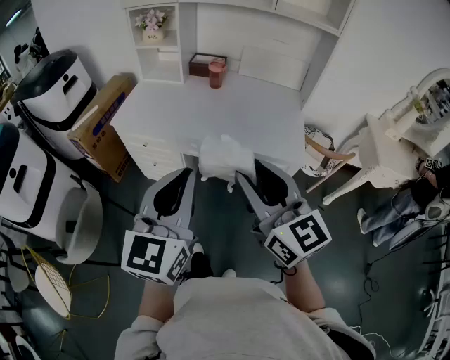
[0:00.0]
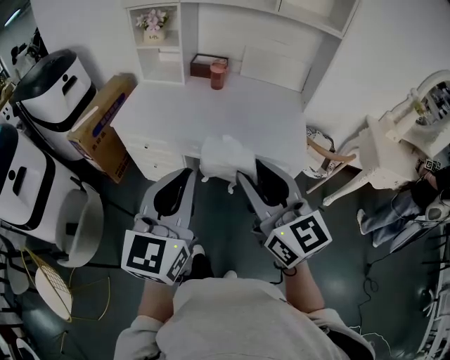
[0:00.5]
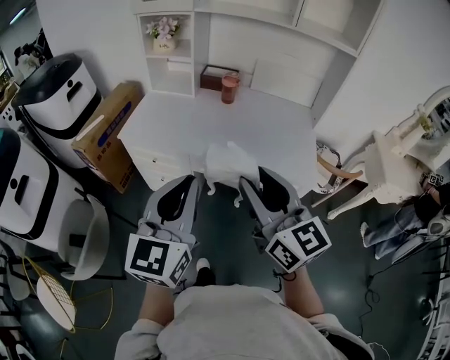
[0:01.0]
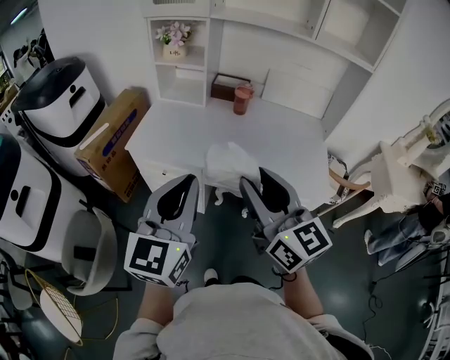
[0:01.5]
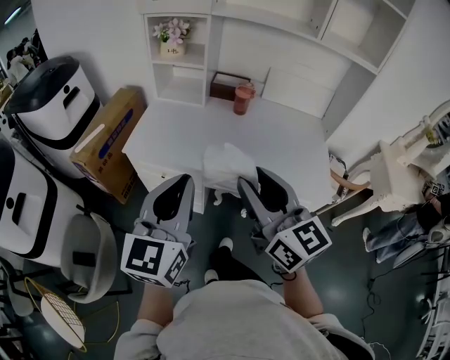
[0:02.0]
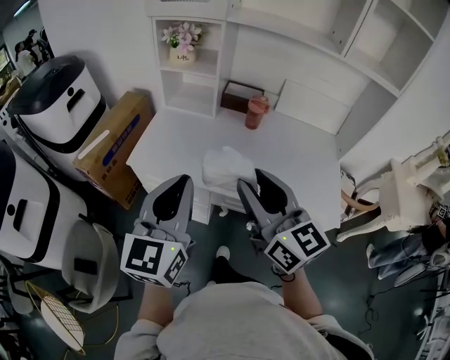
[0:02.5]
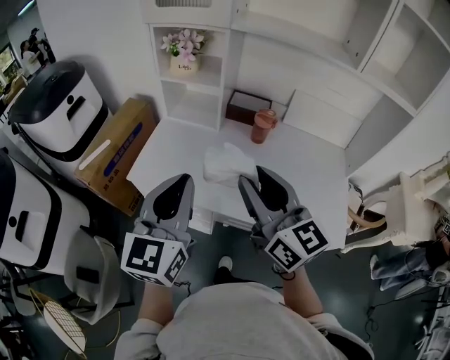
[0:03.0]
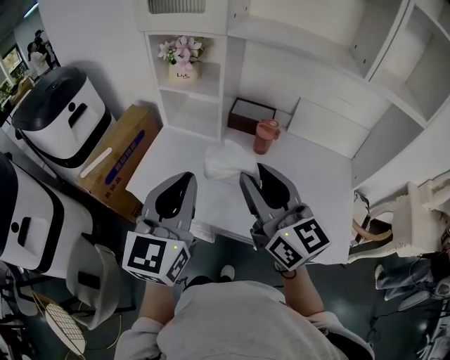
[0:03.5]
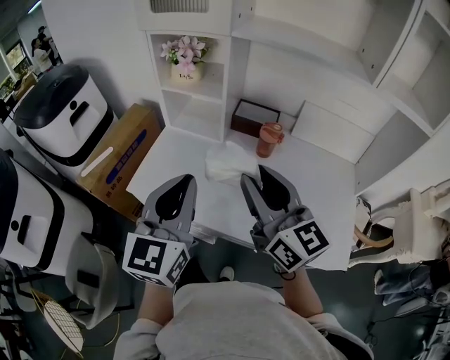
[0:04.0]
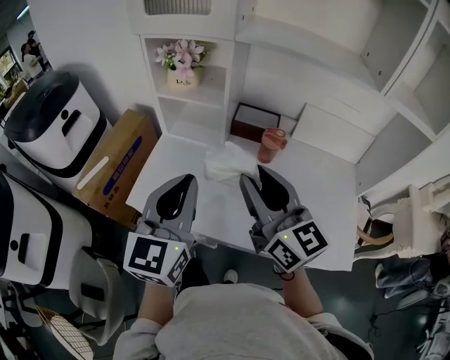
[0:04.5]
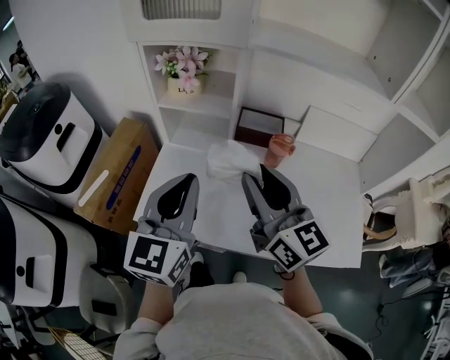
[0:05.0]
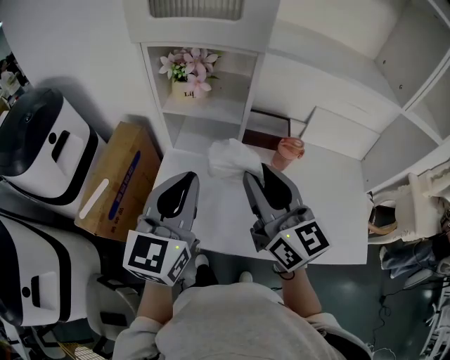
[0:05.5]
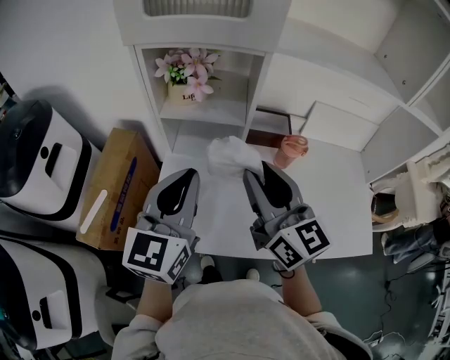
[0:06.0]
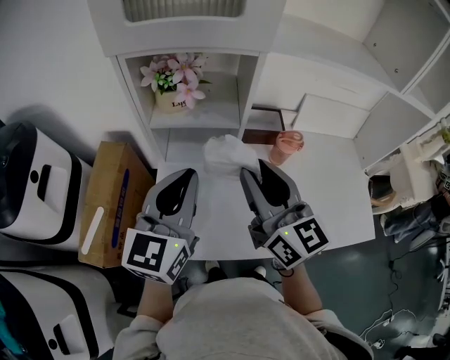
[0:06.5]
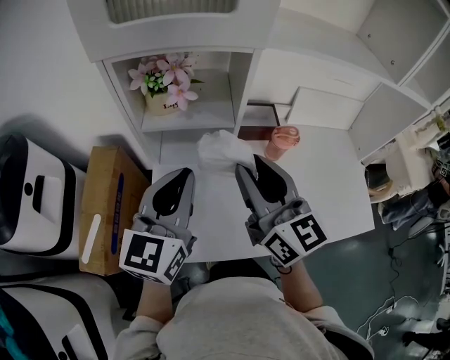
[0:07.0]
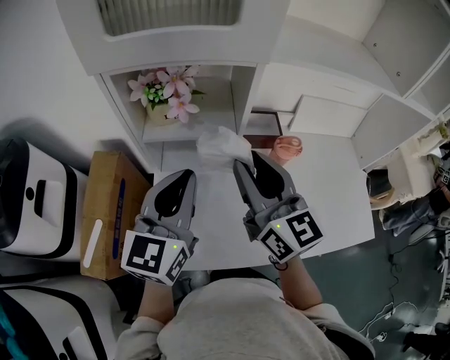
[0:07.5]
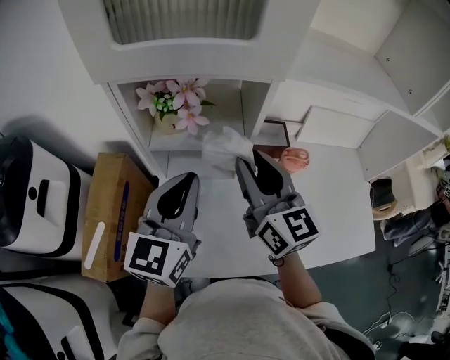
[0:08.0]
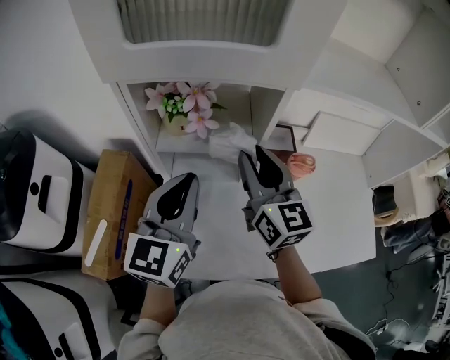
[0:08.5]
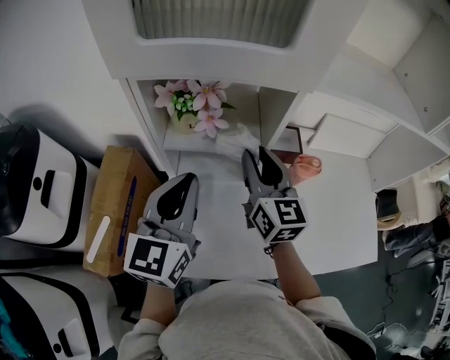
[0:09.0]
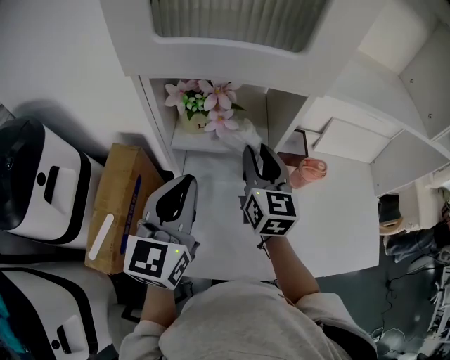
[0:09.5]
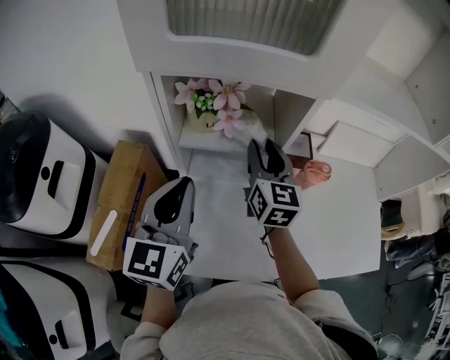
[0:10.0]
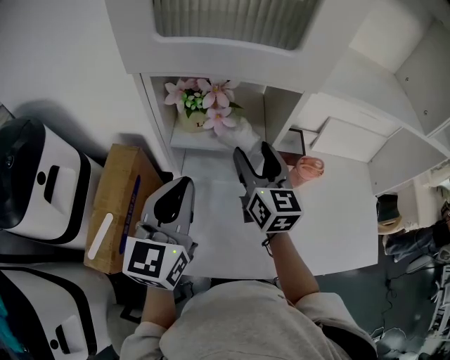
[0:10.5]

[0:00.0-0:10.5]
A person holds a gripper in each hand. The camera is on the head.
0:00.0 to 0:02.0: Both grippers travel together forward and to the left, approximately 20 cm.
0:02.0 to 0:04.0: The two grippers go roughly 25 cm forward.
0:04.0 to 0:06.5: The grippers both shift forward and to the left by approximately 25 cm. The left gripper changes its angle by approximately 20 degrees; the right gripper rotates roughly 20 degrees.
0:06.5 to 0:08.5: The left gripper heads forward, covering roughly 10 cm. The right gripper heads forward, covering approximately 15 cm.
0:08.5 to 0:10.5: The right gripper changes place by approximately 5 cm, and opens.

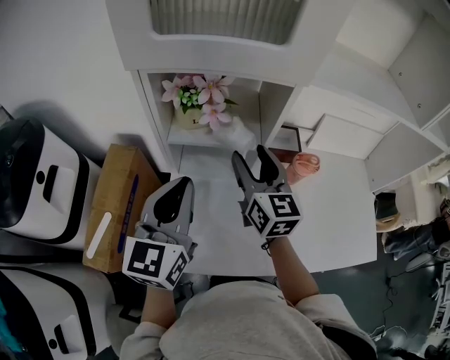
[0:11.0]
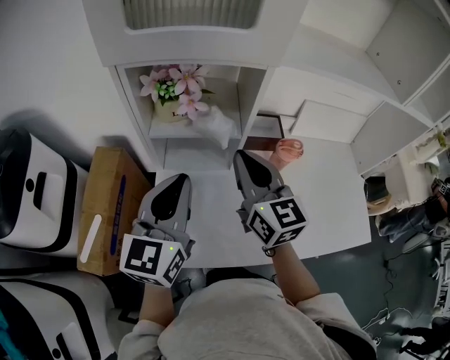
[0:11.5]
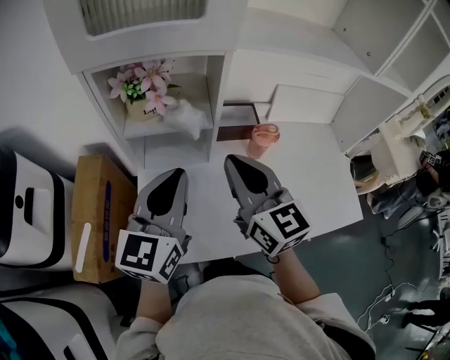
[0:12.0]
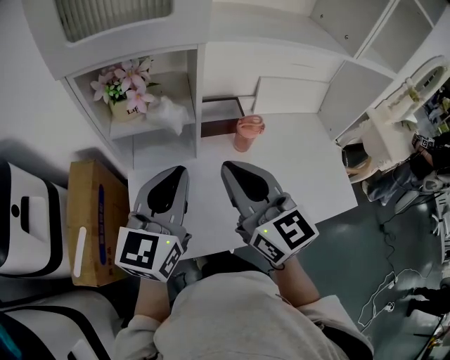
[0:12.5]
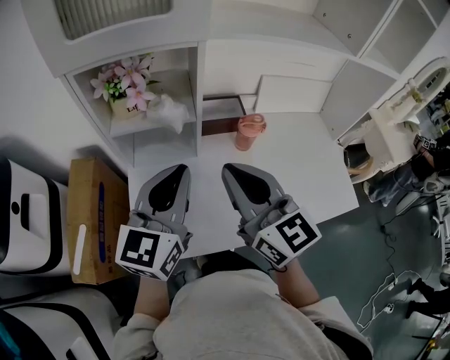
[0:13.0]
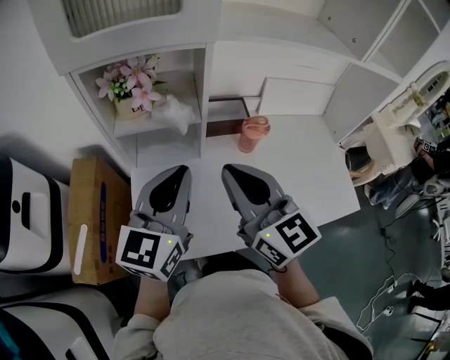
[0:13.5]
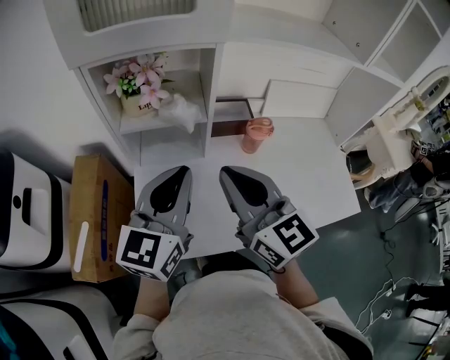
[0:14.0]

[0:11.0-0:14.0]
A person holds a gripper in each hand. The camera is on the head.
0:11.0 to 0:12.5: The right gripper shifts about 20 cm backward and to the right, and closes its fingers, while the left gripper travels to the right by some 10 cm.
0:12.5 to 0:14.0: The grippers move only a little.

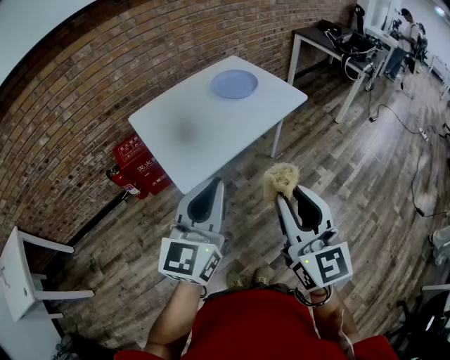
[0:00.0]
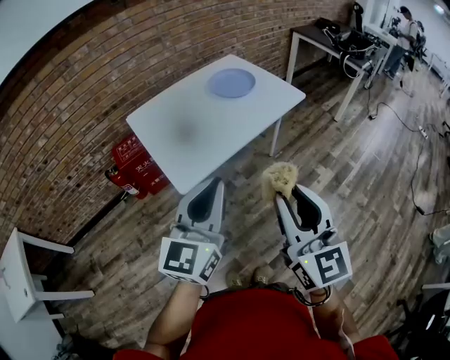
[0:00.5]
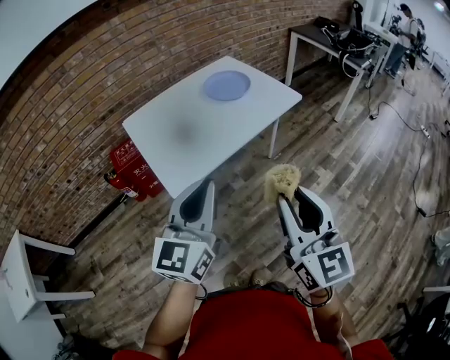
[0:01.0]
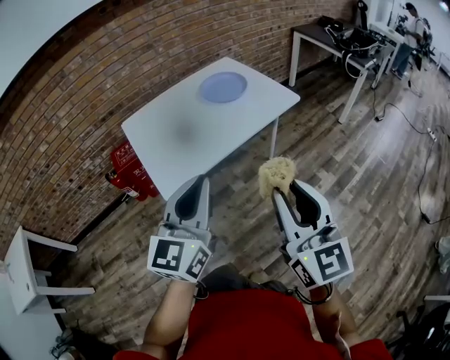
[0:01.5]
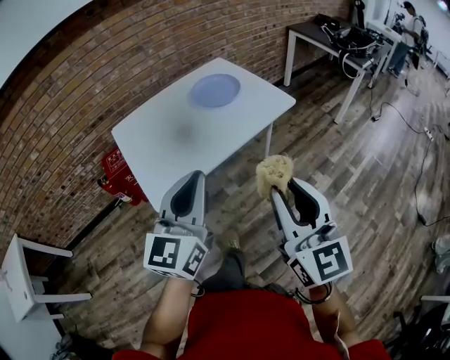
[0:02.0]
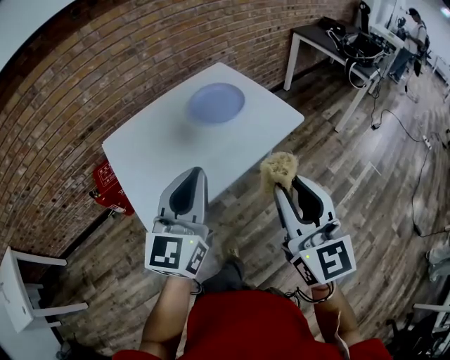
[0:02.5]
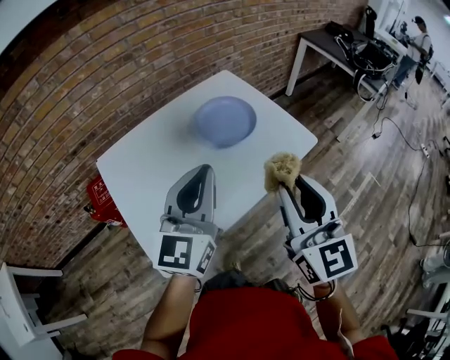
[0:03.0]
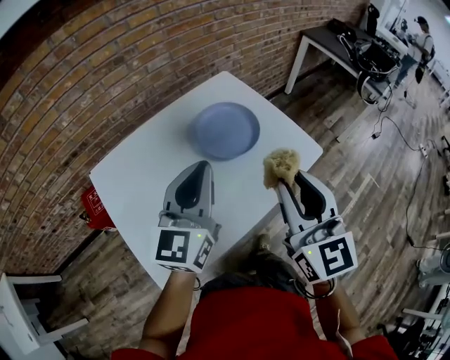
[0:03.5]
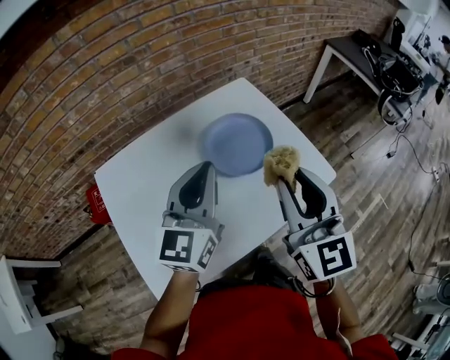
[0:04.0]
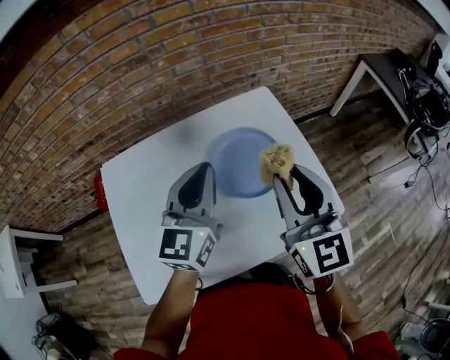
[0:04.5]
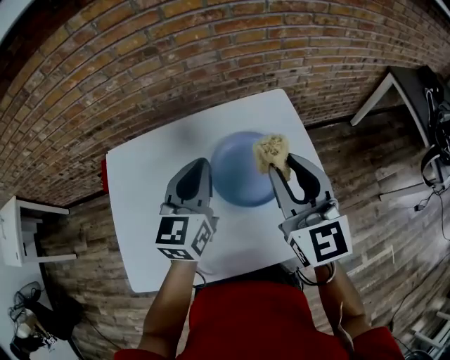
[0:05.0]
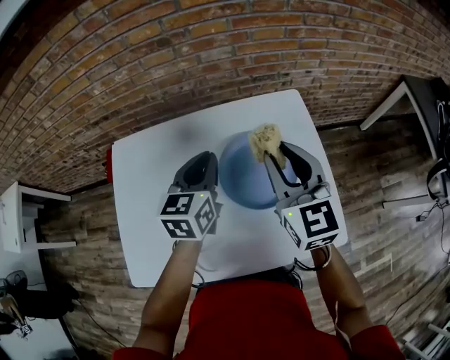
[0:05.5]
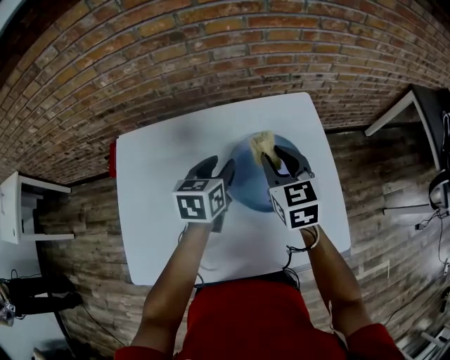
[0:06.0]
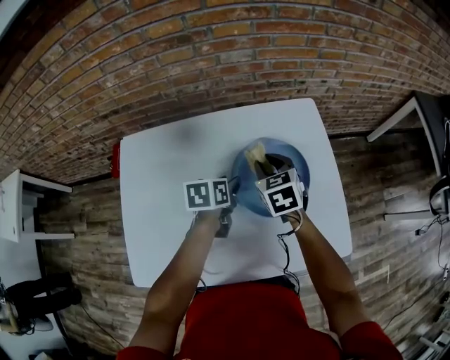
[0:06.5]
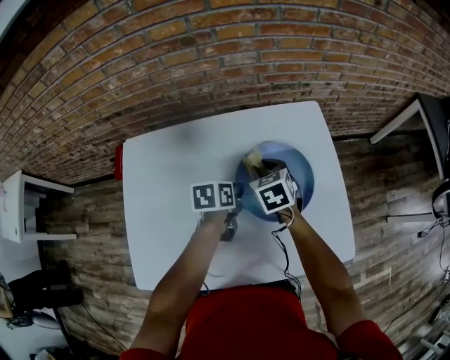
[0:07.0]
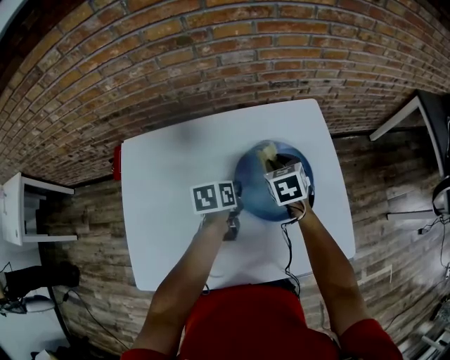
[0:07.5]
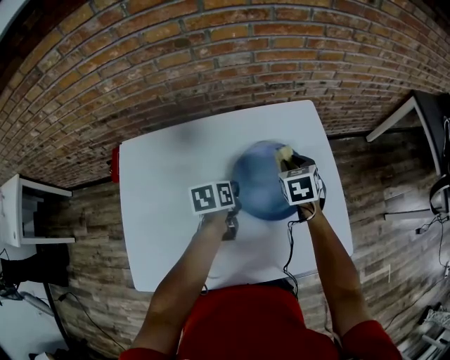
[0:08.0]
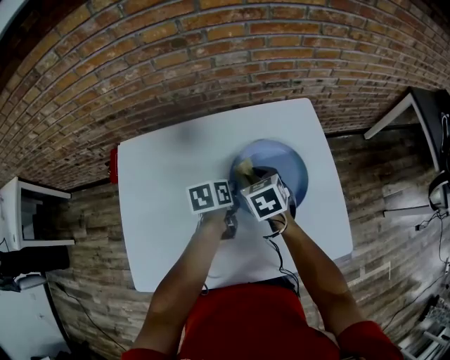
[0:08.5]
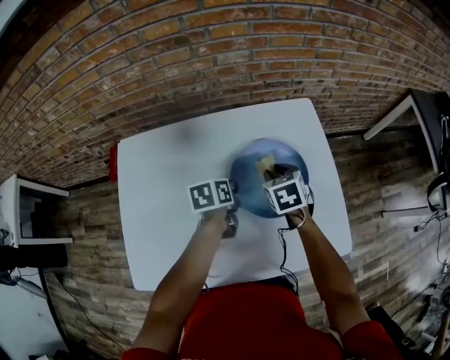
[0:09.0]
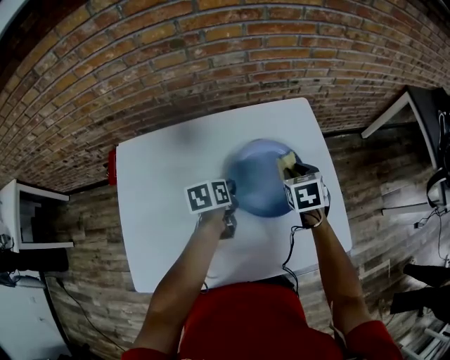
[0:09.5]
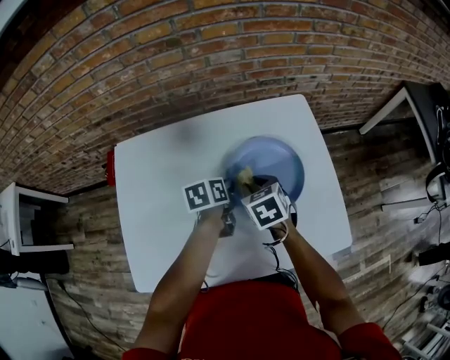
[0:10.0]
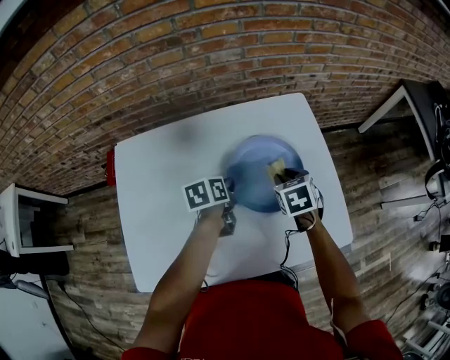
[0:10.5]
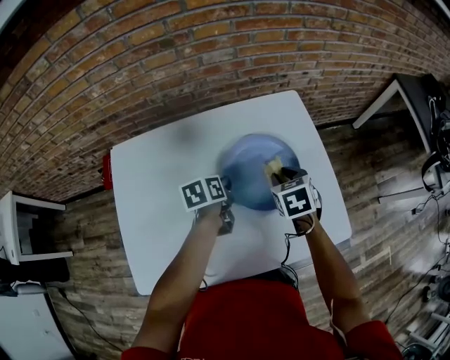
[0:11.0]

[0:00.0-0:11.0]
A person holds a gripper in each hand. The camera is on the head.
0:00.0 to 0:02.0: The right gripper shifts some 15 cm to the right and forward. Meanwhile the left gripper goes some 10 cm forward and to the right.
0:02.0 to 0:03.5: The two grippers go some 35 cm forward.
0:03.5 to 0:05.5: The left gripper shifts by approximately 25 cm, and changes its angle by about 40 degrees; the right gripper ends up approximately 30 cm from where it was, and rotates some 30 degrees.
0:05.5 to 0:07.5: Both grippers move downward, some 20 cm. The left gripper rotates some 40 degrees, and opens, then closes once more, while the right gripper tips its fingers downward by approximately 40 degrees.
0:07.5 to 0:09.0: The right gripper swings left and right, approximately 10 cm each way, with 2 reversals.
0:09.0 to 0:11.0: The right gripper swings left and right, about 10 cm each way, with 2 reversals.

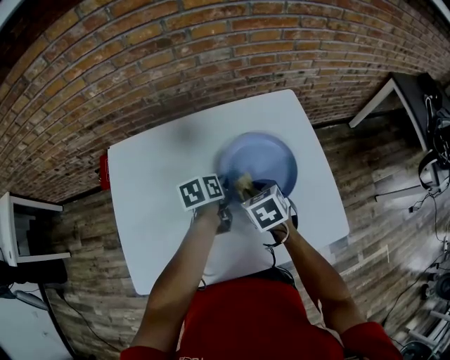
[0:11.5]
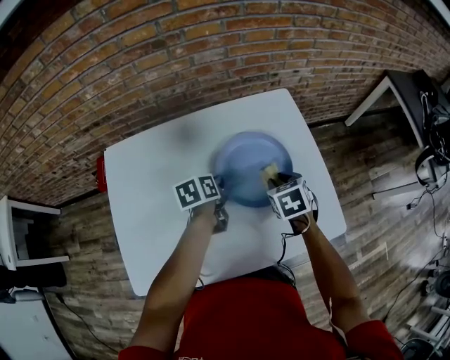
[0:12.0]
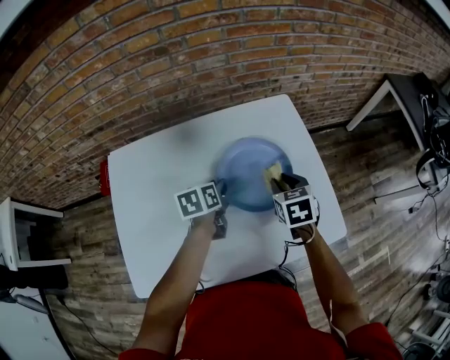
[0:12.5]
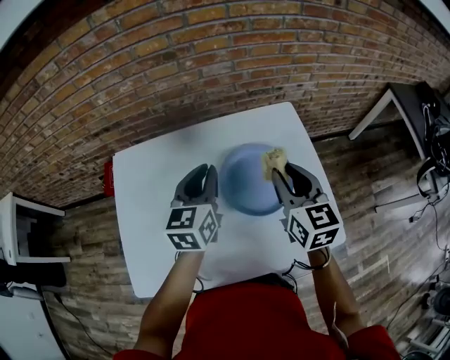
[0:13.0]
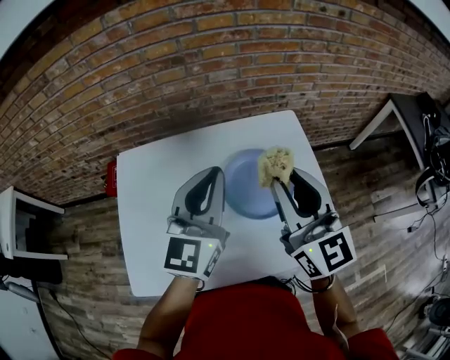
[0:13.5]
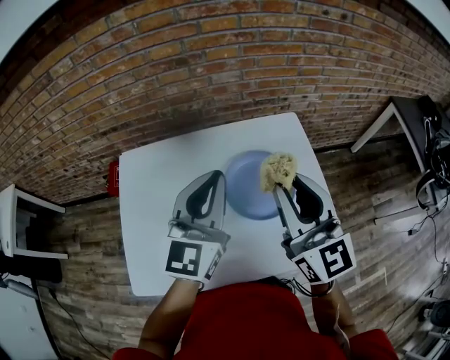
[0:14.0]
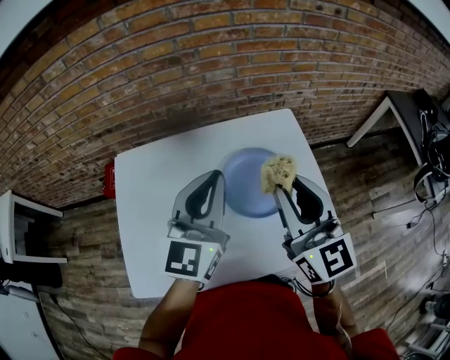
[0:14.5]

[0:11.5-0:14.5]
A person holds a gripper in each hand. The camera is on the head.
0:11.5 to 0:13.0: The left gripper travels upward by about 20 cm, and angles its fingers upward, by roughly 30 degrees; the right gripper heads upward and to the right, covering roughly 20 cm, and points its fingers approximately 40 degrees further upward.
0:13.0 to 0:14.5: Both grippers move upward and backward, approximately 15 cm. The right gripper rotates roughly 20 degrees. The left gripper turns by about 20 degrees.
